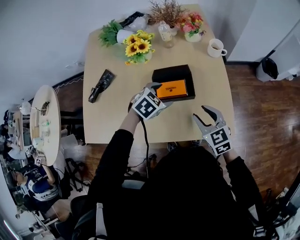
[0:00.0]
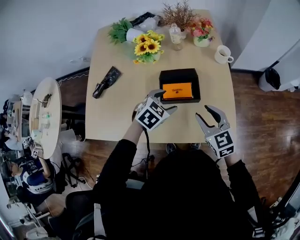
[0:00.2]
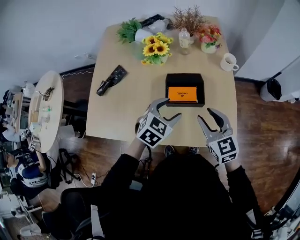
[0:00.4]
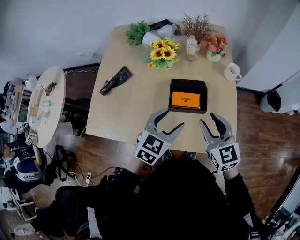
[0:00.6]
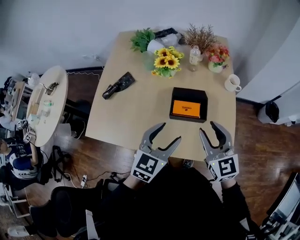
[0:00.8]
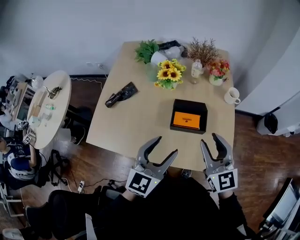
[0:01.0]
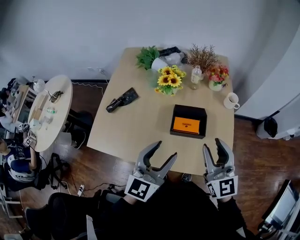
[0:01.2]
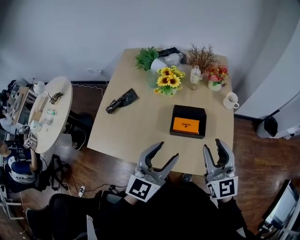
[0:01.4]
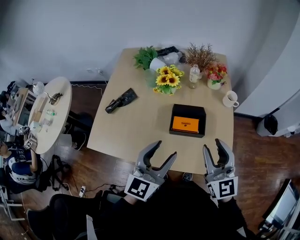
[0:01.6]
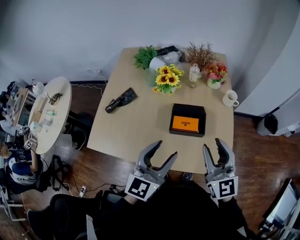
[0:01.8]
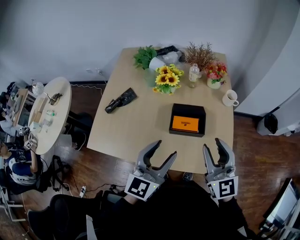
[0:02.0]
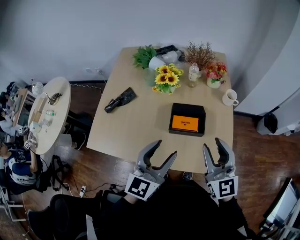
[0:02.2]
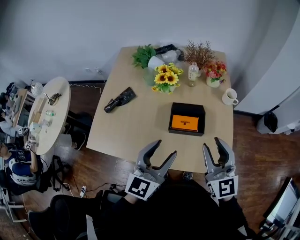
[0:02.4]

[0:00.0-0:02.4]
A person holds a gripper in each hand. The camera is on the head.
0:00.0 to 0:01.2: The right gripper is displaced upward by some 20 cm, and points its fingers about 30 degrees further upward, while the left gripper moves upward and backward, approximately 25 cm, and points its fingers approximately 50 degrees further upward.
0:01.2 to 0:02.4: Neither gripper changes place.

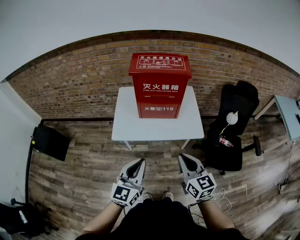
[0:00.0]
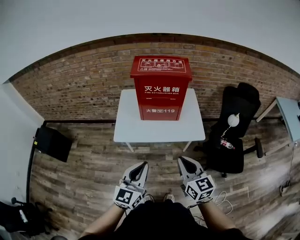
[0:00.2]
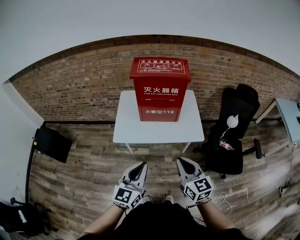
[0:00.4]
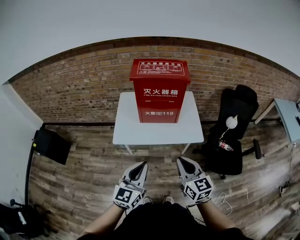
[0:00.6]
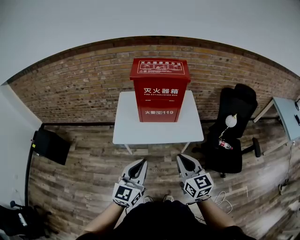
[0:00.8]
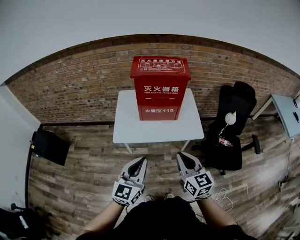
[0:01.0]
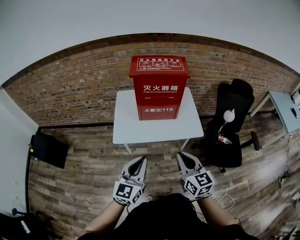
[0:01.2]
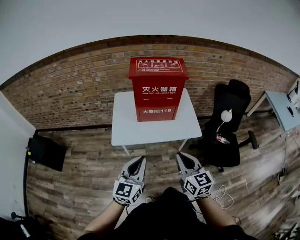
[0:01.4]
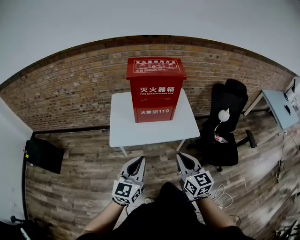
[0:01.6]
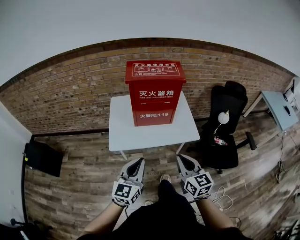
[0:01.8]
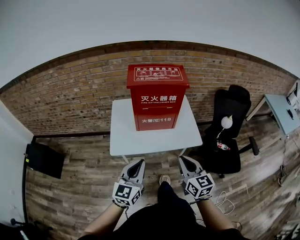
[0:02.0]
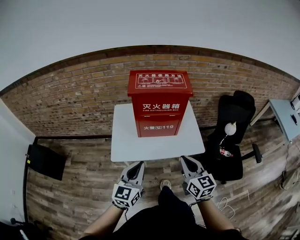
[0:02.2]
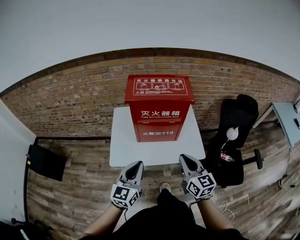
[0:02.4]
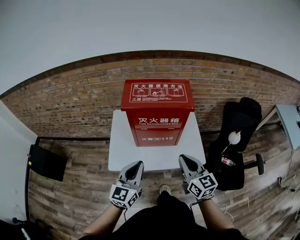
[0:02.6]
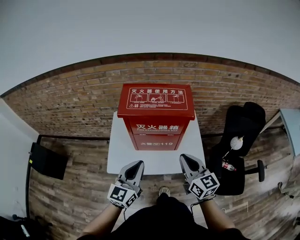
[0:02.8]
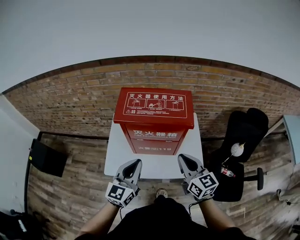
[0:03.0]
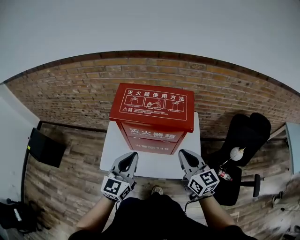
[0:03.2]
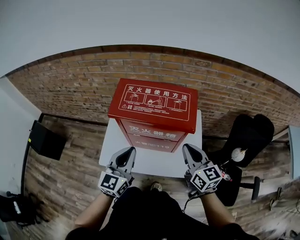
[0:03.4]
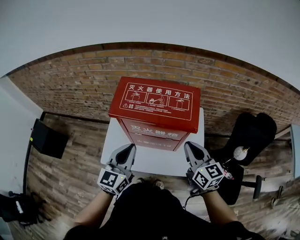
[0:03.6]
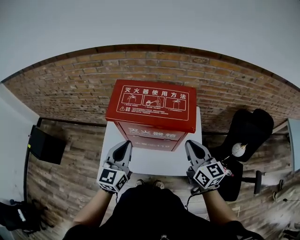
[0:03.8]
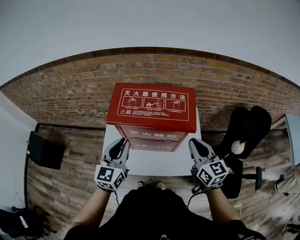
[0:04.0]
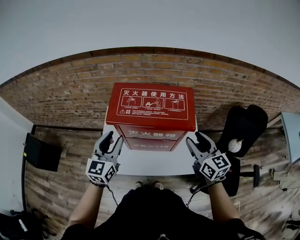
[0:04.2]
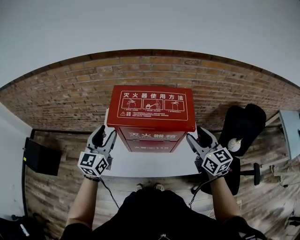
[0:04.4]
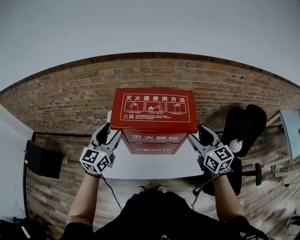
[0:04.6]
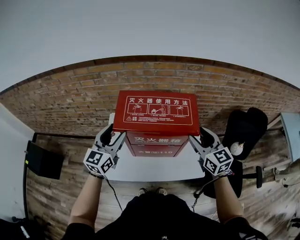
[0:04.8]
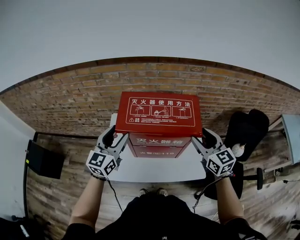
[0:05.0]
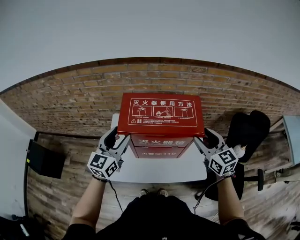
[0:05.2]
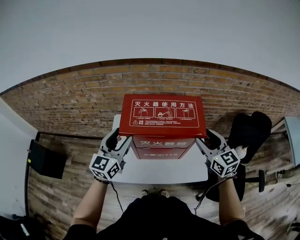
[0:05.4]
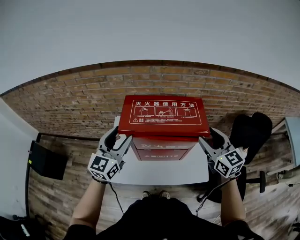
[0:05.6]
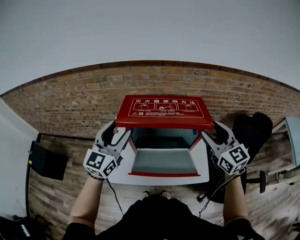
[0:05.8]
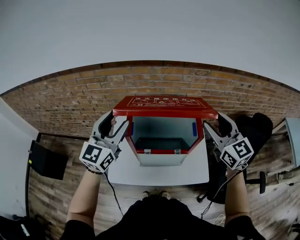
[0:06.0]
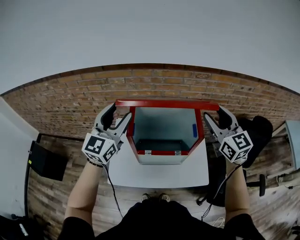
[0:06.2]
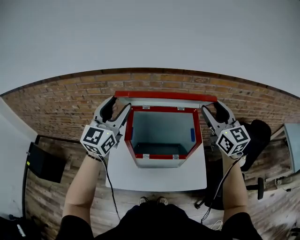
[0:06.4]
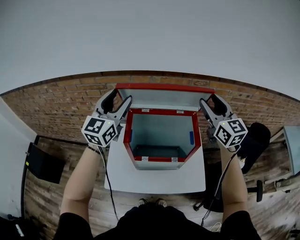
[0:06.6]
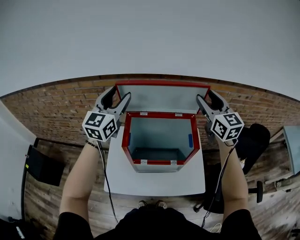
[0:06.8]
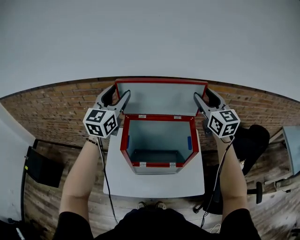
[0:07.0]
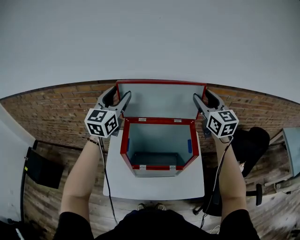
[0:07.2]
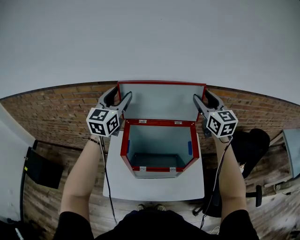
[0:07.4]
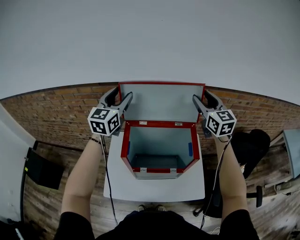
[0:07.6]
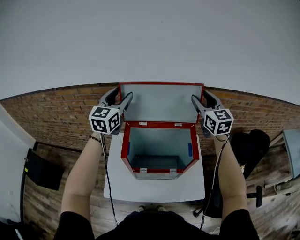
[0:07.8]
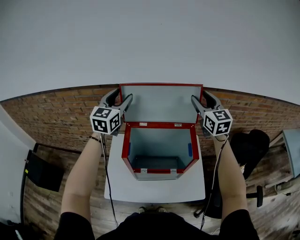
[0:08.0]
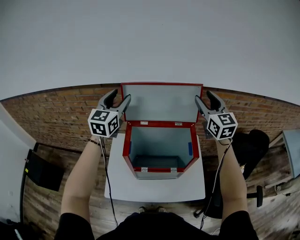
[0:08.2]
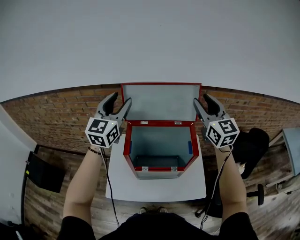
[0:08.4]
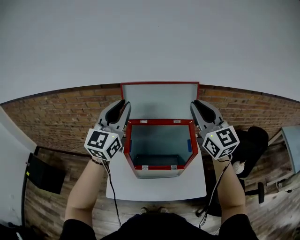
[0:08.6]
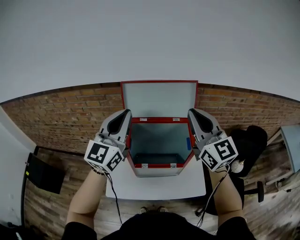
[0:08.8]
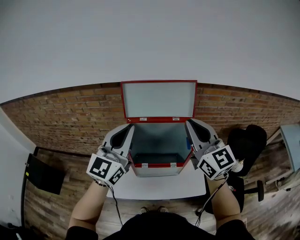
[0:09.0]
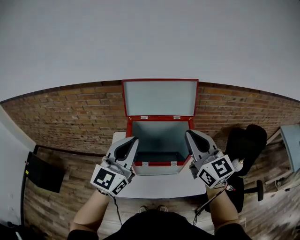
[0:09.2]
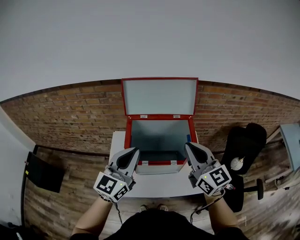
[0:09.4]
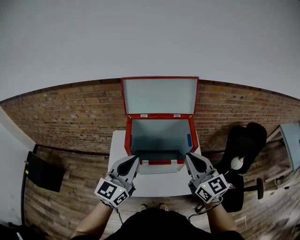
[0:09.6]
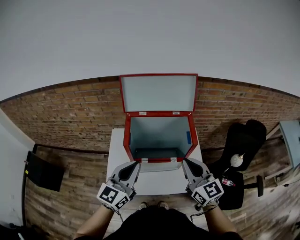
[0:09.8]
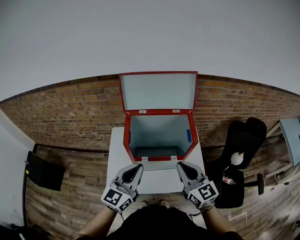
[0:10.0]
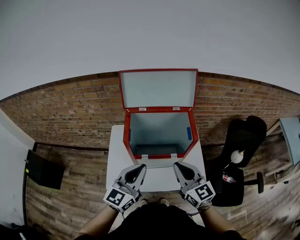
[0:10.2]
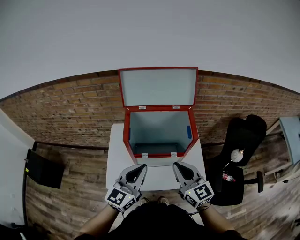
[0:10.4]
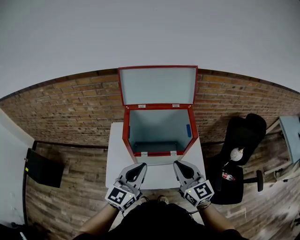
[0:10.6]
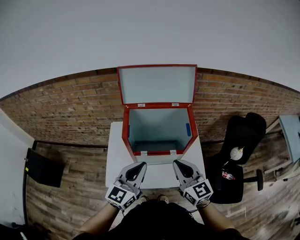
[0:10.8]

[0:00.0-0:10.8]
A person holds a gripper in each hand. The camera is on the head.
0:00.0 to 0:01.6: The grippers stay close to where they were, moving slightly.
0:01.6 to 0:03.0: The two grippers go some 30 cm forward.
0:03.0 to 0:04.6: The right gripper goes approximately 15 cm forward and to the right, and opens its fingers, while the left gripper moves forward and to the left, some 20 cm, and opens its fingers.
0:04.6 to 0:06.2: The left gripper goes approximately 15 cm upward; the right gripper heads upward and forward, covering about 15 cm.
0:06.2 to 0:07.8: The two grippers go roughly 20 cm forward.
0:07.8 to 0:09.2: The grippers both shift backward by roughly 25 cm. The left gripper closes up. Meanwhile the right gripper closes its fingers.
0:09.2 to 0:10.8: The two grippers go roughly 20 cm downward and backward.

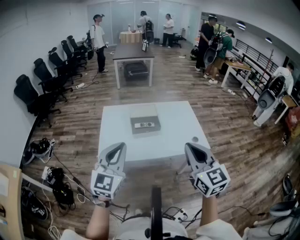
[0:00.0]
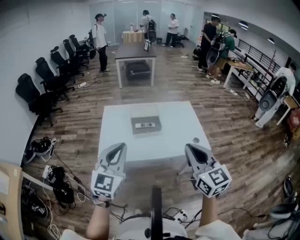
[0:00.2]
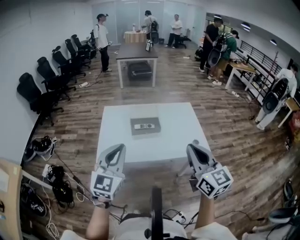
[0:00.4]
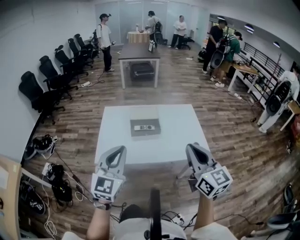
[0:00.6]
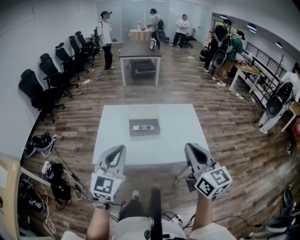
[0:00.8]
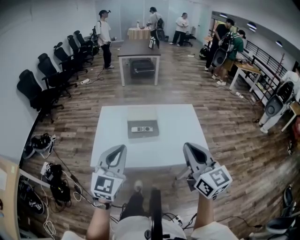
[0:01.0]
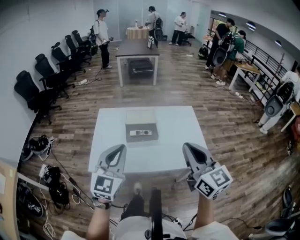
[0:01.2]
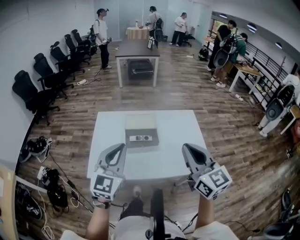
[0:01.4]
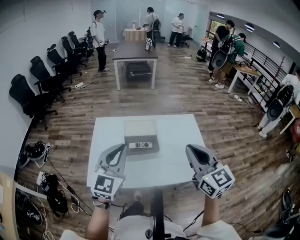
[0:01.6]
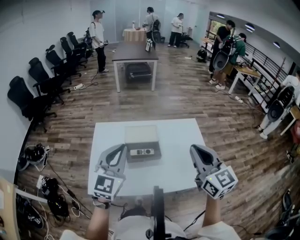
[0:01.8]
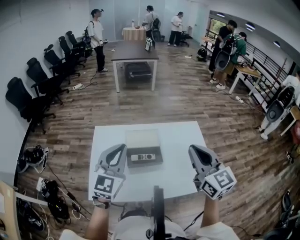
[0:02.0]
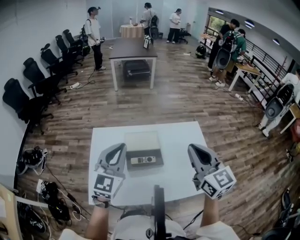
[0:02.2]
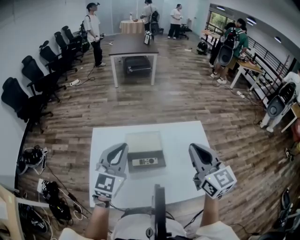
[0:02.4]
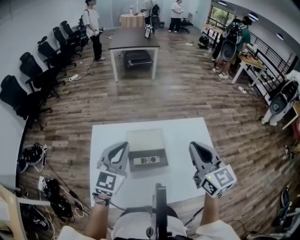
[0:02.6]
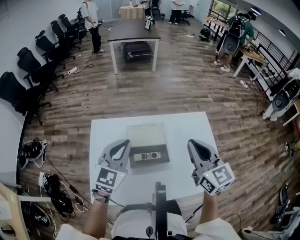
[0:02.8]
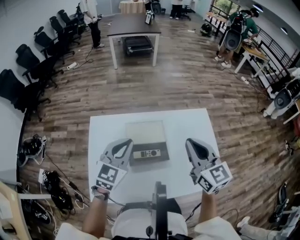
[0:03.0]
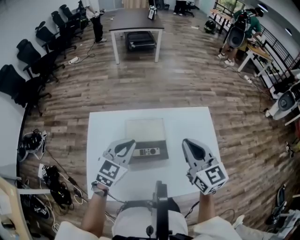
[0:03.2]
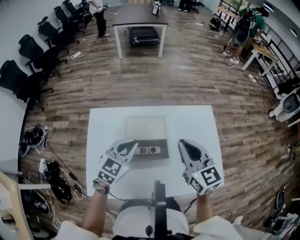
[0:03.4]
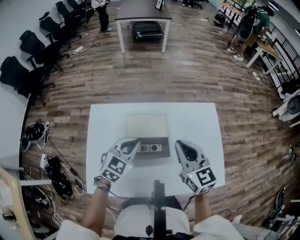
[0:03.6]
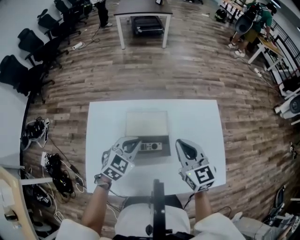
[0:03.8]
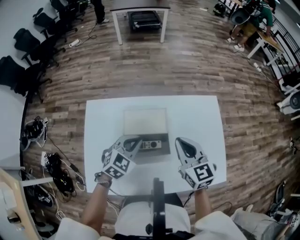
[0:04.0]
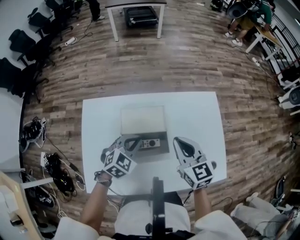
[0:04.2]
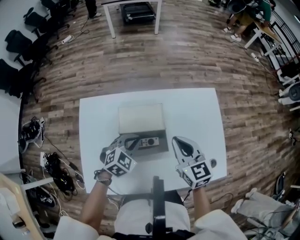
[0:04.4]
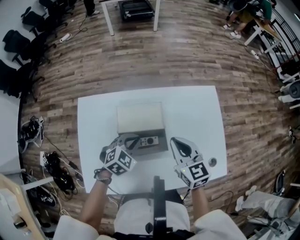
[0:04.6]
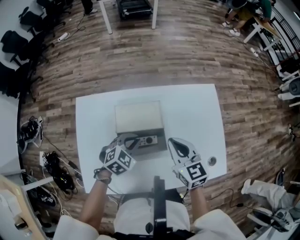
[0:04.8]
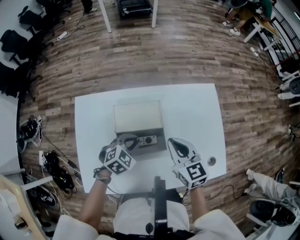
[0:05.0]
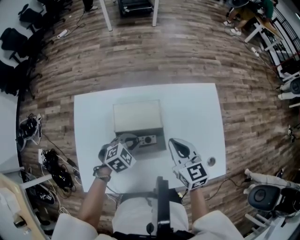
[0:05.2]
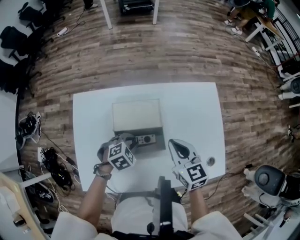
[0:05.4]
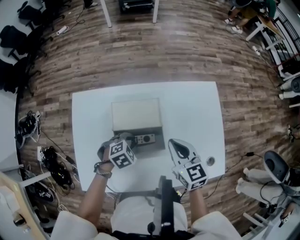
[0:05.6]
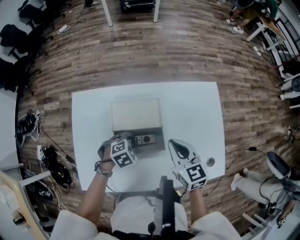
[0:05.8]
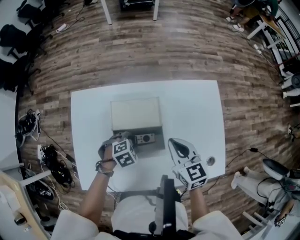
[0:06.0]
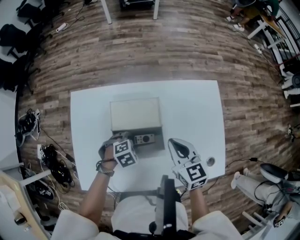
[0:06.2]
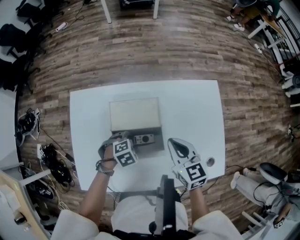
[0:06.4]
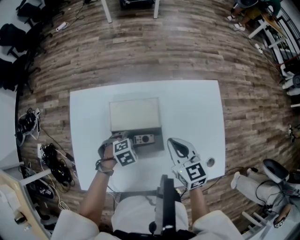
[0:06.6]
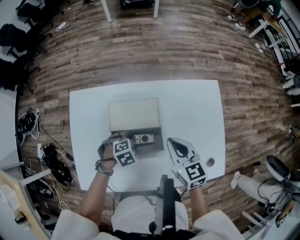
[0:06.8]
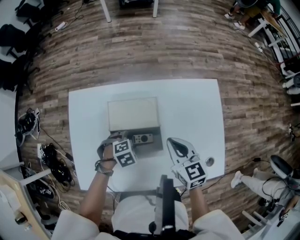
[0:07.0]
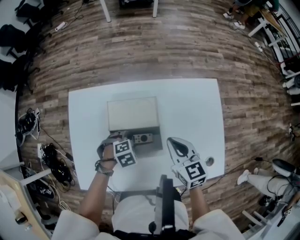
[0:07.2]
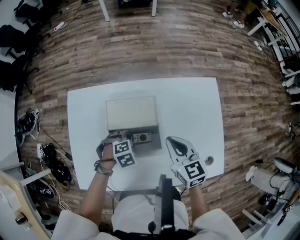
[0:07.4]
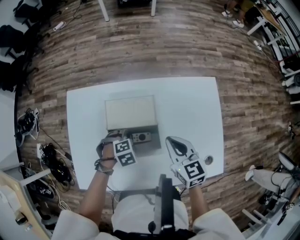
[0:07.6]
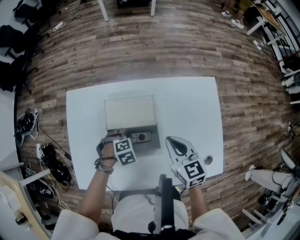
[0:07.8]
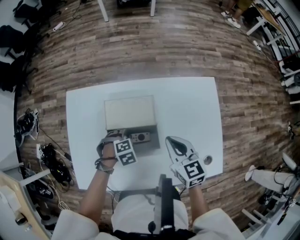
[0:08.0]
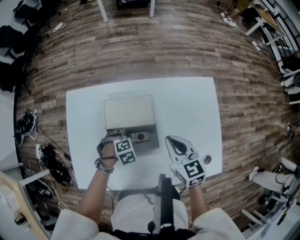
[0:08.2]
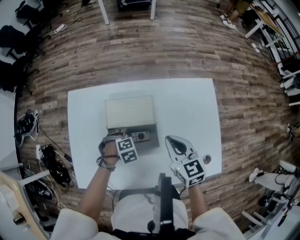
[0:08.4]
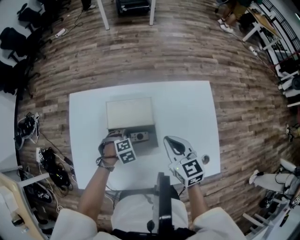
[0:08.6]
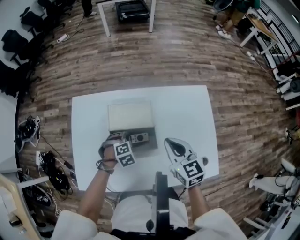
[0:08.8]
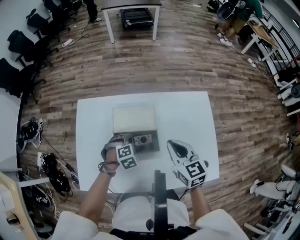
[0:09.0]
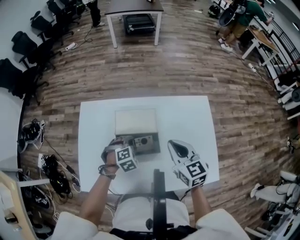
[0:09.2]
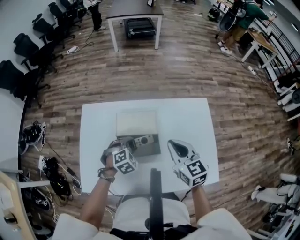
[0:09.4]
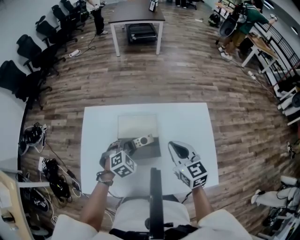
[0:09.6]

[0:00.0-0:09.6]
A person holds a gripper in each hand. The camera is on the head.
0:00.0 to 0:01.6: Both grippers travel together forward, roughly 20 cm.
0:01.6 to 0:03.2: Both grippers move forward and downward, approximately 25 cm. The left gripper changes its angle by approximately 20 degrees.
0:03.2 to 0:04.8: The grippers both shift downward by about 15 cm. The left gripper turns by approximately 30 degrees.
0:04.8 to 0:06.4: The left gripper shifts approximately 10 cm downward, turns by approximately 30 degrees, and opens.
0:06.4 to 0:08.0: There are only small adjustments of the grippers.
0:08.0 to 0:09.6: Both grippers move upward, about 10 cm. The left gripper rotates roughly 30 degrees.

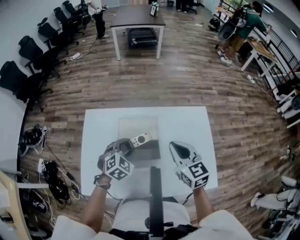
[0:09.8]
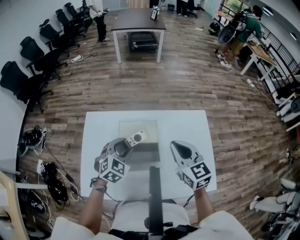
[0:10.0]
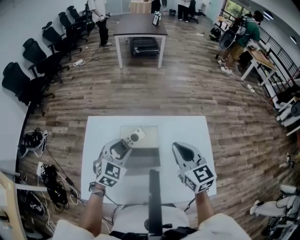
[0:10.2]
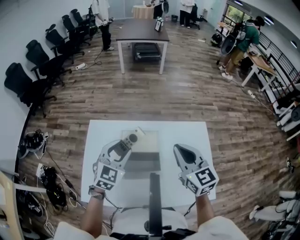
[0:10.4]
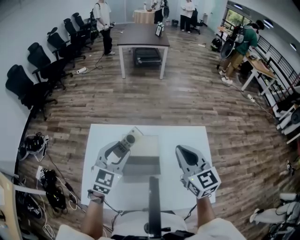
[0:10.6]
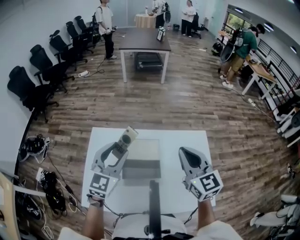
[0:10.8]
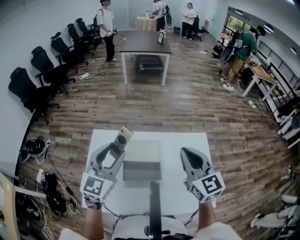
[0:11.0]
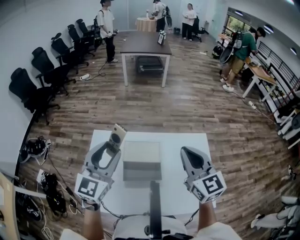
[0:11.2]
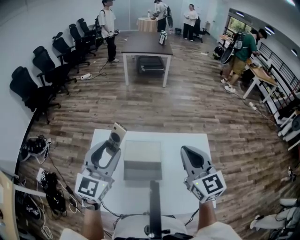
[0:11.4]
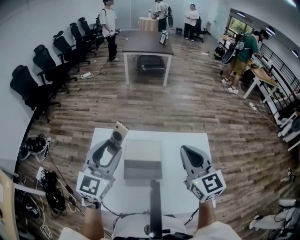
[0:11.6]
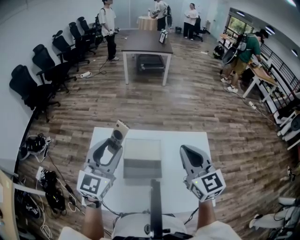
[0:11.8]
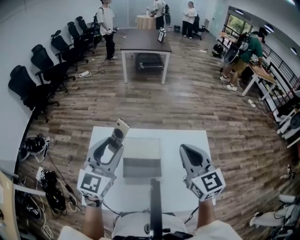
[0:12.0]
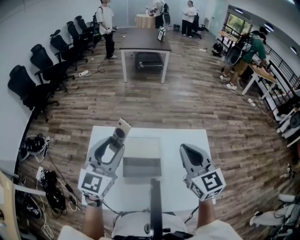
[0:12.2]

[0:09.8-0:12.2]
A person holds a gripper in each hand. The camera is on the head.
0:09.8 to 0:11.0: The right gripper shifts roughly 15 cm upward; the left gripper travels upward by about 25 cm, and angles its fingers upward, by roughly 40 degrees.
0:11.0 to 0:12.2: There are only small adjustments of the grippers.
